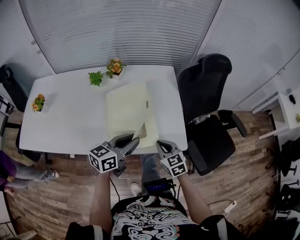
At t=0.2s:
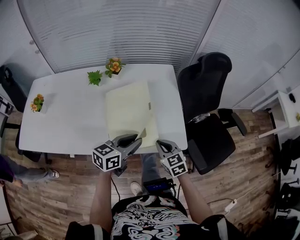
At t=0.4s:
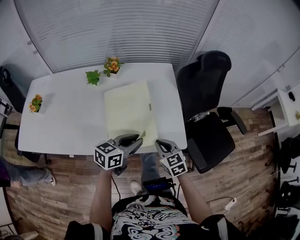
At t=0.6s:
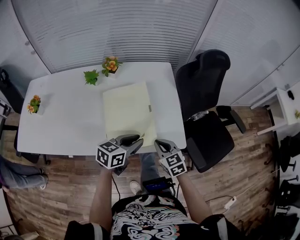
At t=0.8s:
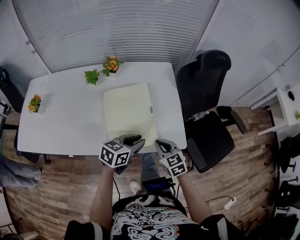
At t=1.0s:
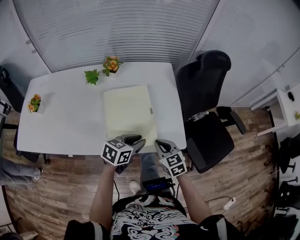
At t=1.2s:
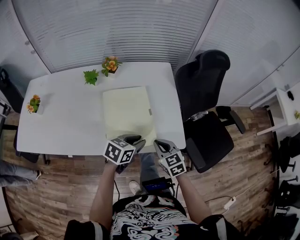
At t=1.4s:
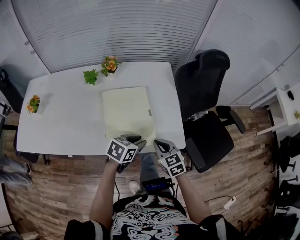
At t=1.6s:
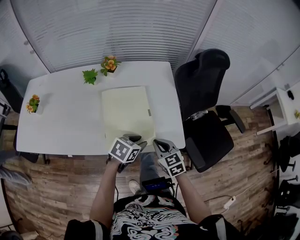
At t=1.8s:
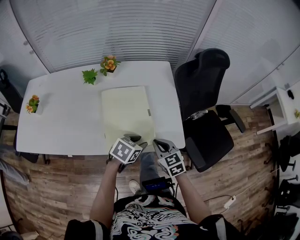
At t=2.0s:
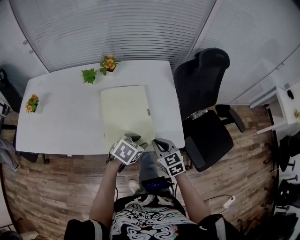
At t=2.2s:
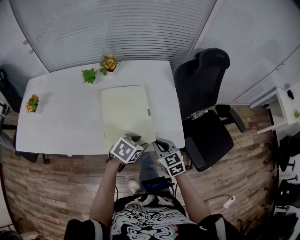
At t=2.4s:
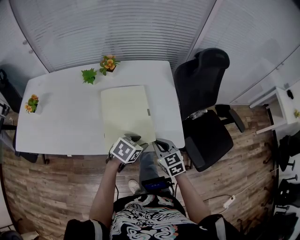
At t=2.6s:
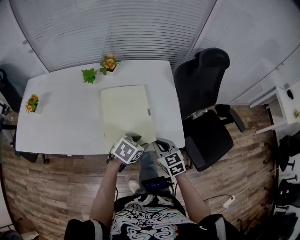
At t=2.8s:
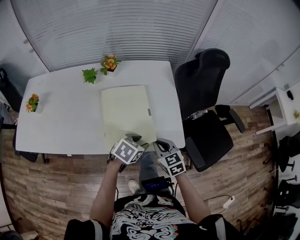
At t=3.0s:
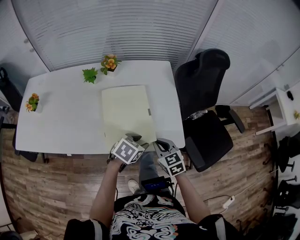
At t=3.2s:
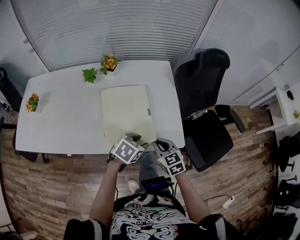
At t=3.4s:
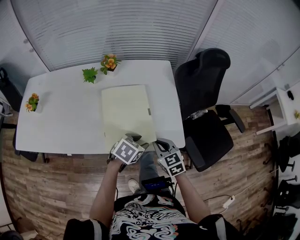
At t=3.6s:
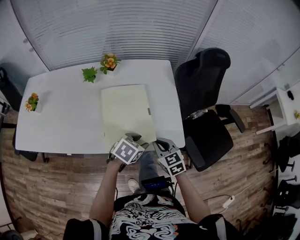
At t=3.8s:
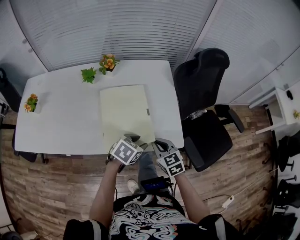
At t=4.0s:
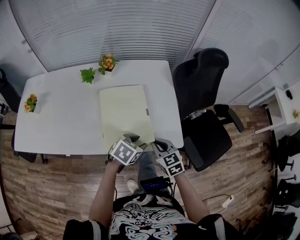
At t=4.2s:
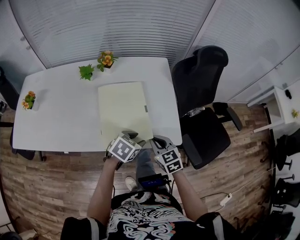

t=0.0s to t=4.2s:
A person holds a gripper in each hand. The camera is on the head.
t=0.0s to t=1.4s: The left gripper heads downward, covering roughly 10 cm, and changes its angle by some 30 degrees.
t=1.4s to t=2.8s: The grippers make only small movements.
t=2.8s to t=4.2s: Neither gripper changes place.

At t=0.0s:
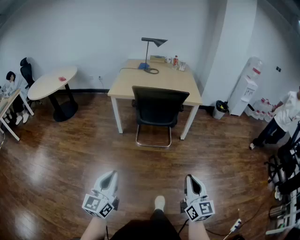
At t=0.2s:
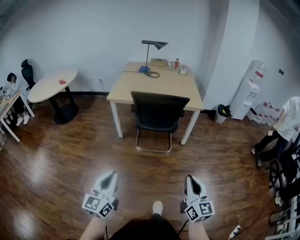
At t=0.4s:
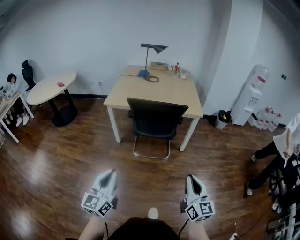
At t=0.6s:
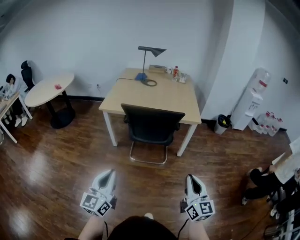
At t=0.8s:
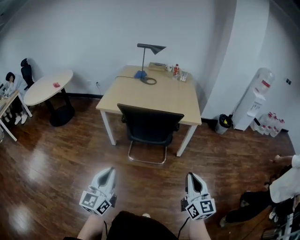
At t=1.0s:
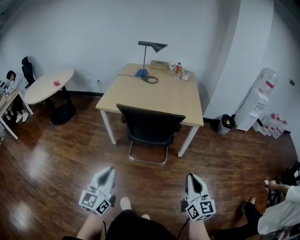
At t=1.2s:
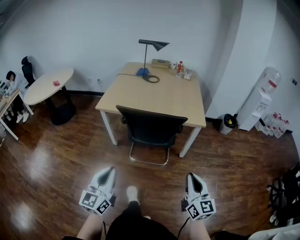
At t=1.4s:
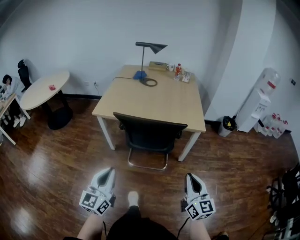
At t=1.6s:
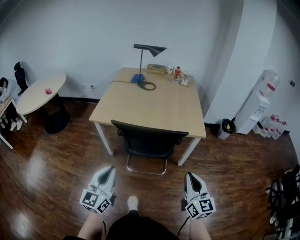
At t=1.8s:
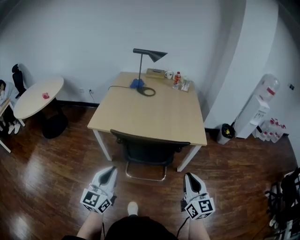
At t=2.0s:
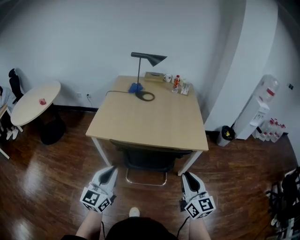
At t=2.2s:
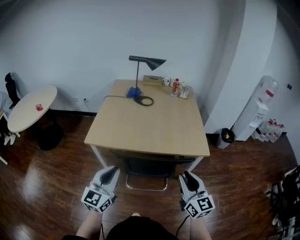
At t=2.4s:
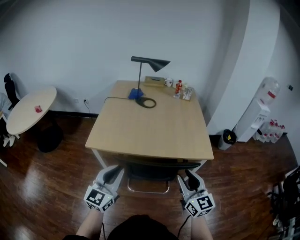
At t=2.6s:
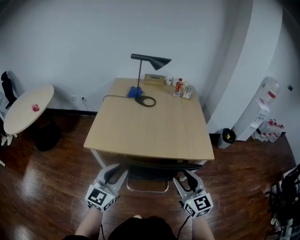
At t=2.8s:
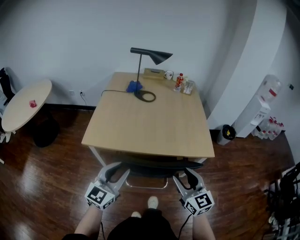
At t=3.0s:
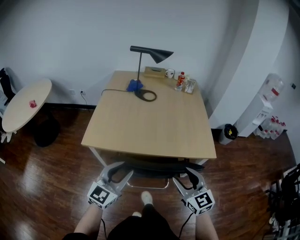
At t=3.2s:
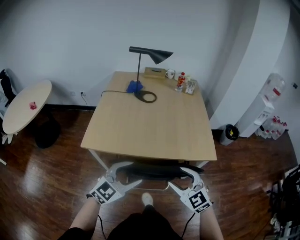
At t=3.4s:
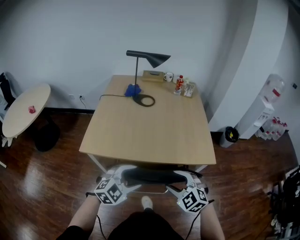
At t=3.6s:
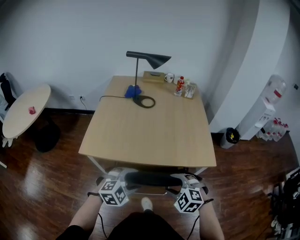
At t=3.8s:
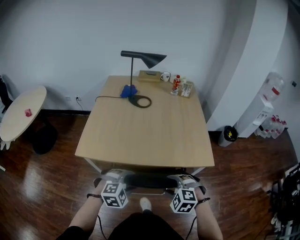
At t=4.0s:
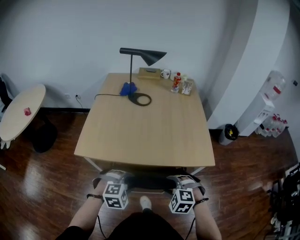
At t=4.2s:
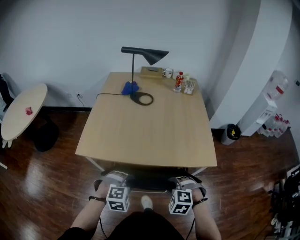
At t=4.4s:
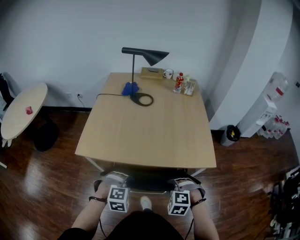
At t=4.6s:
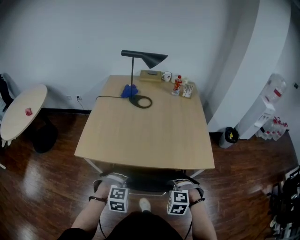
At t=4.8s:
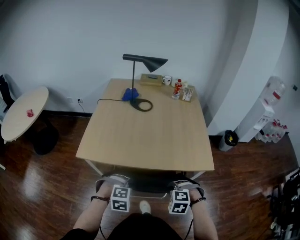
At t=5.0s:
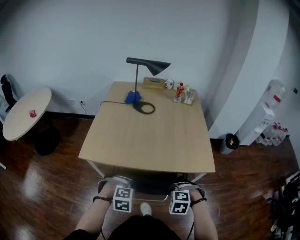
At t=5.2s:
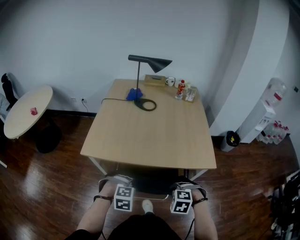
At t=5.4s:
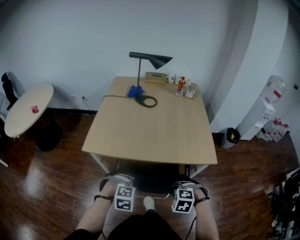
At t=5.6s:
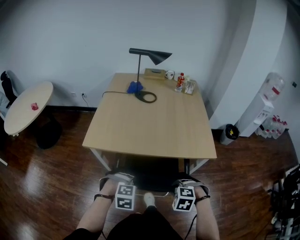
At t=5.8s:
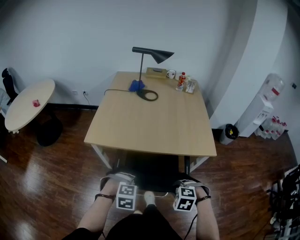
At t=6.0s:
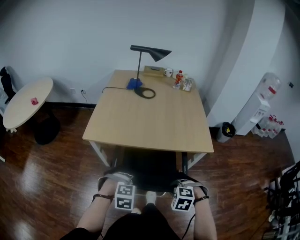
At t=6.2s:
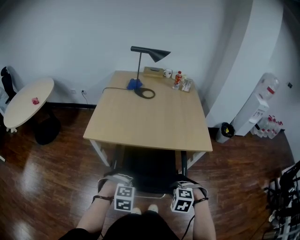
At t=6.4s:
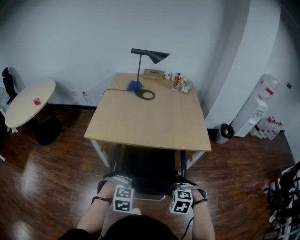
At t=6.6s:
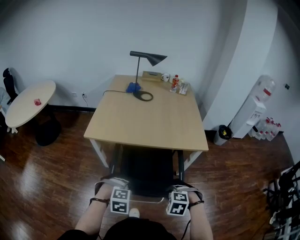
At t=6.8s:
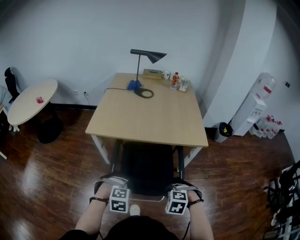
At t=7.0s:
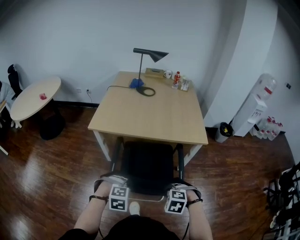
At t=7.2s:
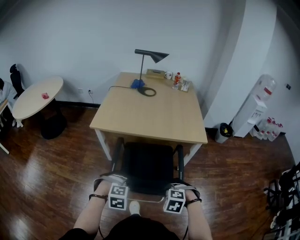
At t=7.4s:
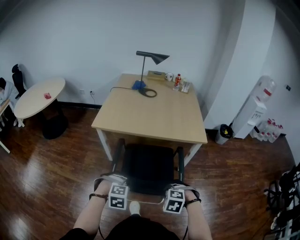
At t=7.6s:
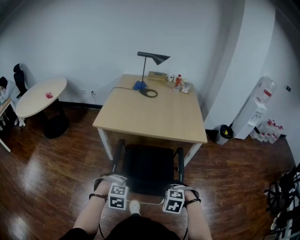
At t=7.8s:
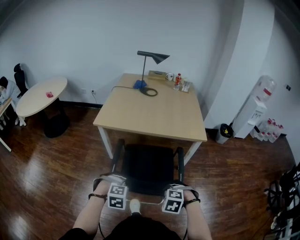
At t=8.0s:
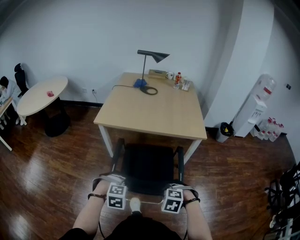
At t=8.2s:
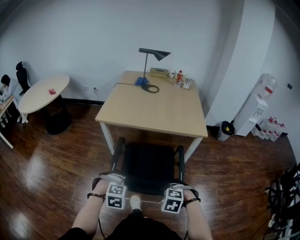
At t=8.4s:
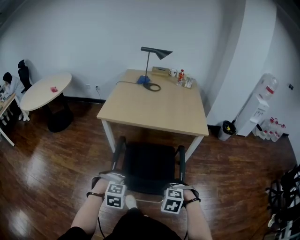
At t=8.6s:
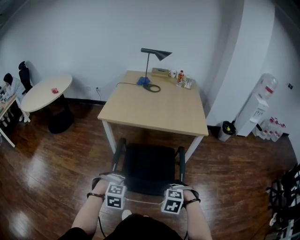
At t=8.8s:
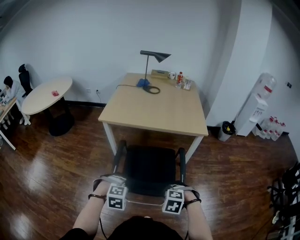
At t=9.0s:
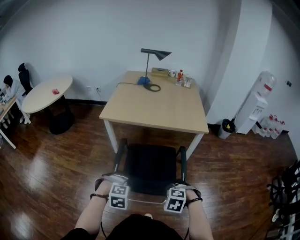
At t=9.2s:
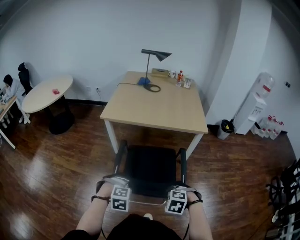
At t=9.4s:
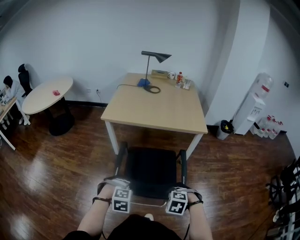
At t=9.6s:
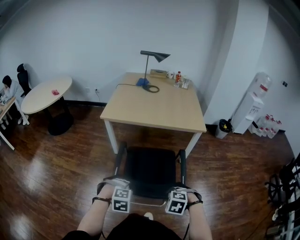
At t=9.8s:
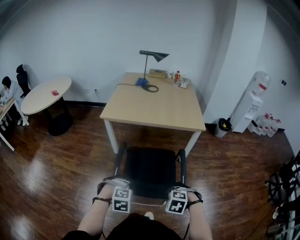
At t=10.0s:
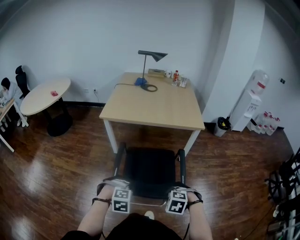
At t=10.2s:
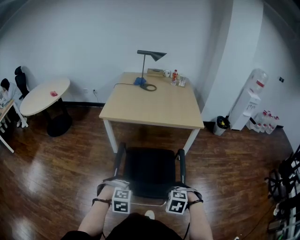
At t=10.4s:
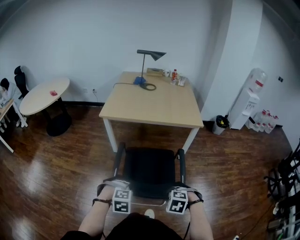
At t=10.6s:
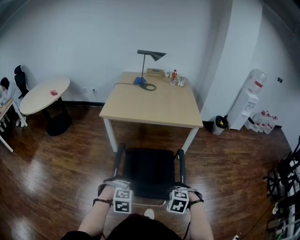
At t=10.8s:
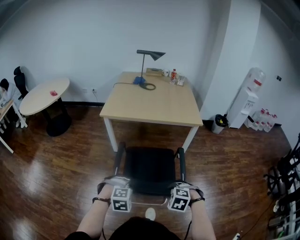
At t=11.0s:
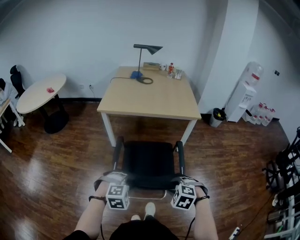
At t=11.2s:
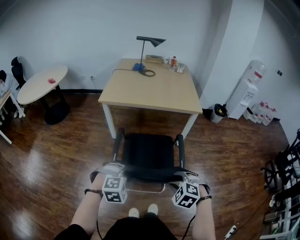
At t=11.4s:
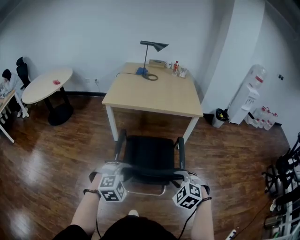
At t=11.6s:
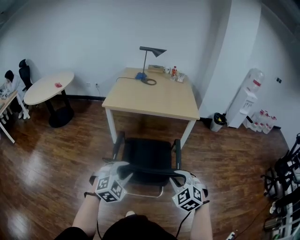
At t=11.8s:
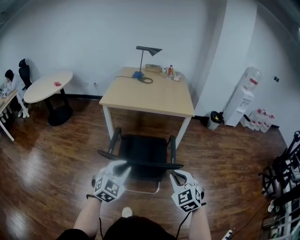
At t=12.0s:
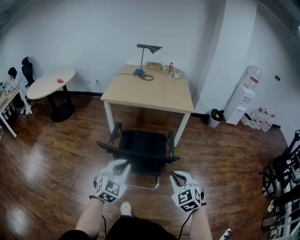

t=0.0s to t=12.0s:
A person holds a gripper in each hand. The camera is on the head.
t=0.0s to t=1.6s: The two grippers go approximately 35 cm forward.
t=1.6s to t=3.0s: The left gripper travels forward by about 25 cm, turns by some 30 degrees, and opens up; the right gripper is displaced forward and to the left by about 25 cm, rotates some 20 degrees, and opens up.
t=3.0s to t=4.4s: Both grippers move downward, some 15 cm. The right gripper tilts its fingers approximately 50 degrees downward, and closes up; the left gripper points its fingers about 60 degrees further downward, and opens, then closes once more.
t=4.4s to t=6.0s: The right gripper moves roughly 15 cm. The left gripper changes place by about 15 cm.
t=6.0s to t=7.6s: The right gripper ends up approximately 20 cm from where it was. Meanwhile the left gripper ends up some 20 cm from where it was.
t=7.6s to t=9.0s: The right gripper shifts by roughly 10 cm. Meanwhile the left gripper shifts by some 10 cm.
t=9.0s to t=10.4s: The right gripper shifts by approximately 10 cm. Meanwhile the left gripper ends up roughly 10 cm from where it was.
t=10.4s to t=12.0s: The right gripper changes place by approximately 20 cm, and tilts its fingers roughly 50 degrees upward. The left gripper travels upward by roughly 15 cm, and angles its fingers upward, by about 50 degrees.

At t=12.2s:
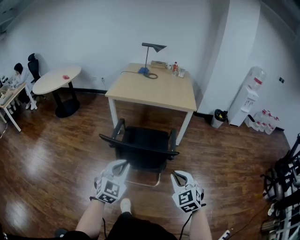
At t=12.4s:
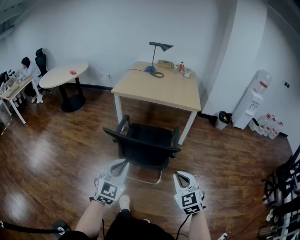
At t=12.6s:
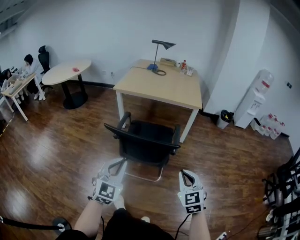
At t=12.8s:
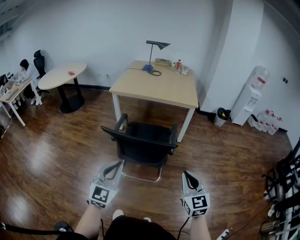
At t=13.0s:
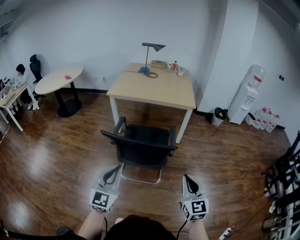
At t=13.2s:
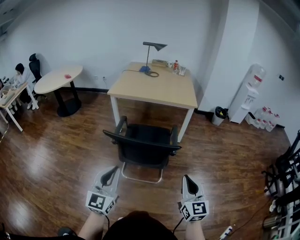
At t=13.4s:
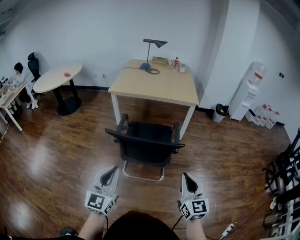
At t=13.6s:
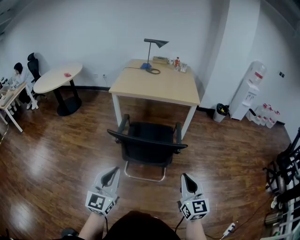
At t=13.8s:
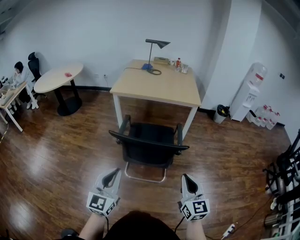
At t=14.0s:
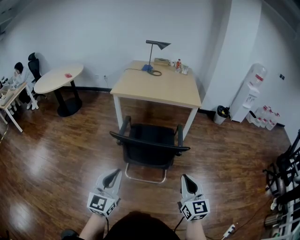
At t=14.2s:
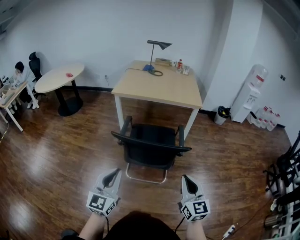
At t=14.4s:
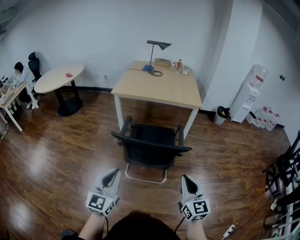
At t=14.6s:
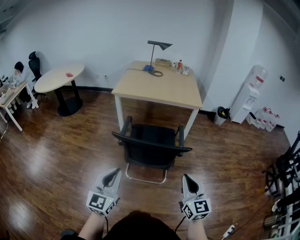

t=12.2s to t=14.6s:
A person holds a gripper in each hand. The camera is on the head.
t=12.2s to t=13.4s: The right gripper moves backward, roughly 5 cm, and turns by some 40 degrees. The left gripper goes about 10 cm backward and to the left, and turns by roughly 30 degrees.
t=13.4s to t=14.6s: The grippers make only small movements.

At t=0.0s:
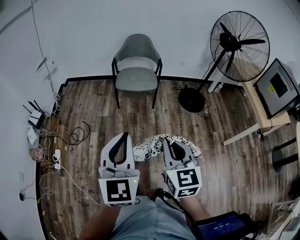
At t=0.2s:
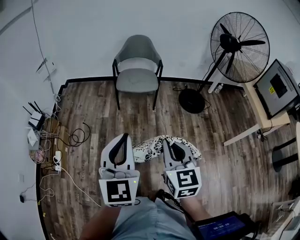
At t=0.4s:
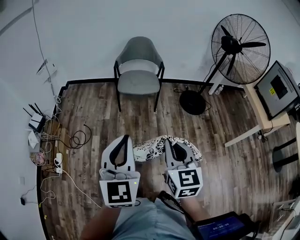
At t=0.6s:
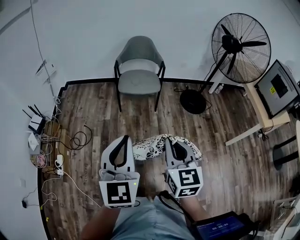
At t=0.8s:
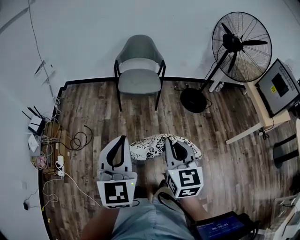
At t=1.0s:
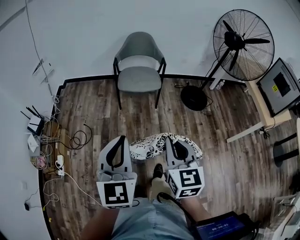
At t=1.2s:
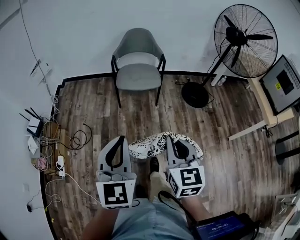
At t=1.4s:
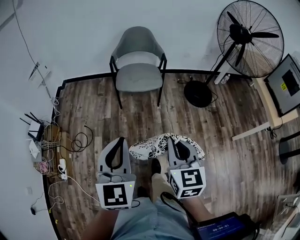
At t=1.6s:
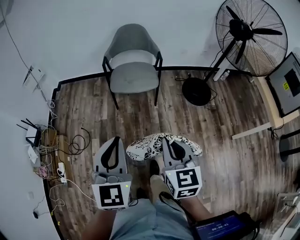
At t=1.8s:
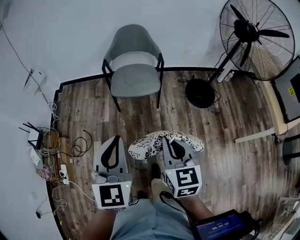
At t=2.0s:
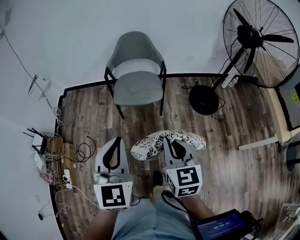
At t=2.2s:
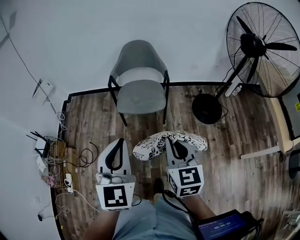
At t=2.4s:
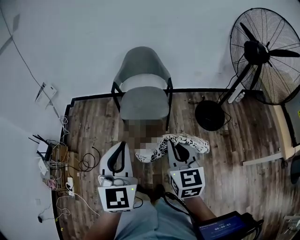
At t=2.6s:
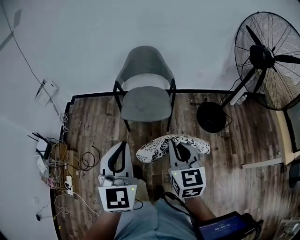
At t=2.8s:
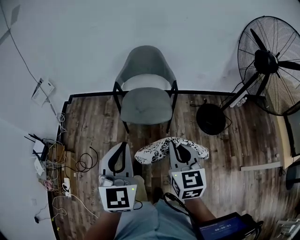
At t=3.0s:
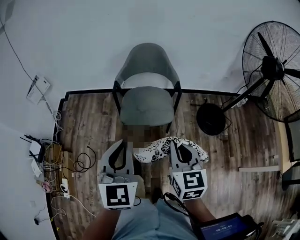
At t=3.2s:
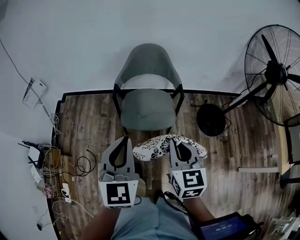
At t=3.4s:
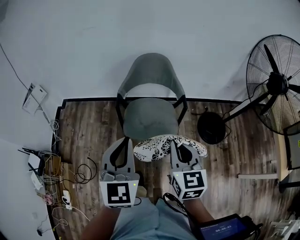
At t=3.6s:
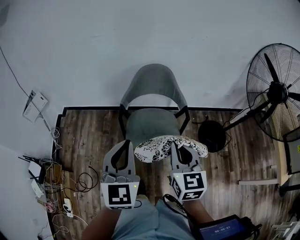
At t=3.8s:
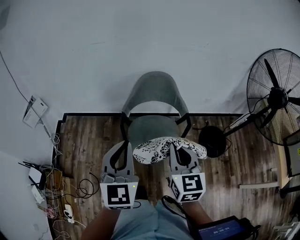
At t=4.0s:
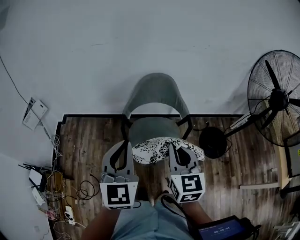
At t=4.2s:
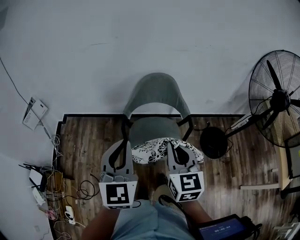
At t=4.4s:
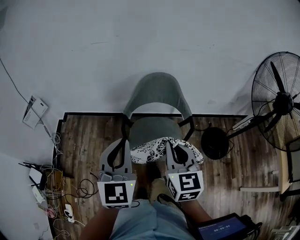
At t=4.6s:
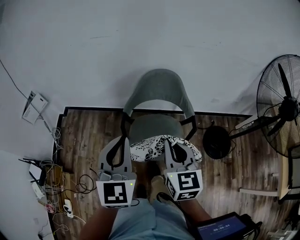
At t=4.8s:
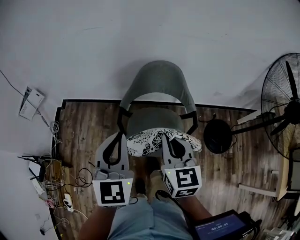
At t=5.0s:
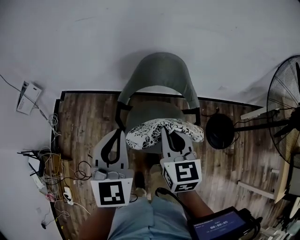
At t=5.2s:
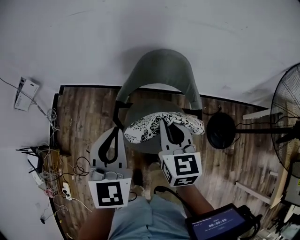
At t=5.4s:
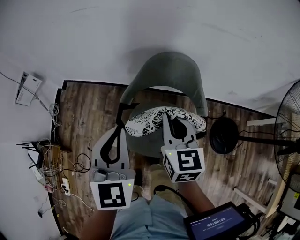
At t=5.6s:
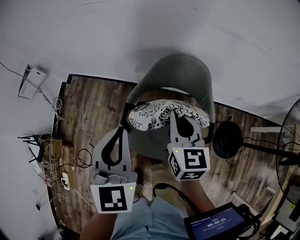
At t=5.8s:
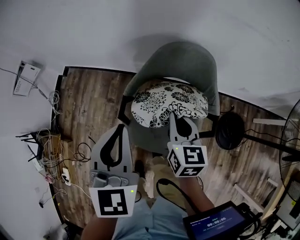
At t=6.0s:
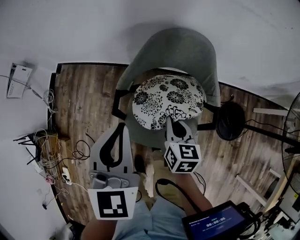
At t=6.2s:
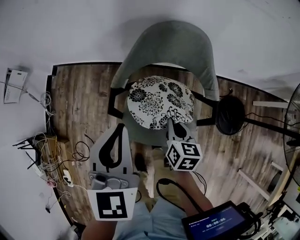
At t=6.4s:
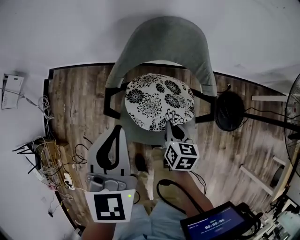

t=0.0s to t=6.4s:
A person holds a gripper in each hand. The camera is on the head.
t=0.0s to t=1.6s: The grippers both shift forward by approximately 20 cm.
t=1.6s to t=3.2s: Both grippers move forward, roughly 35 cm.
t=3.2s to t=4.8s: The two grippers go approximately 25 cm forward.
t=4.8s to t=6.4s: The right gripper moves downward, roughly 30 cm, and swivels roughly 40 degrees; the left gripper shifts approximately 20 cm downward and forward.
